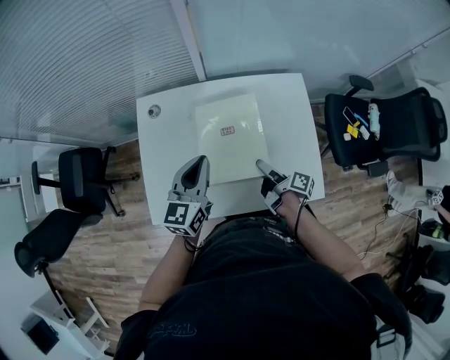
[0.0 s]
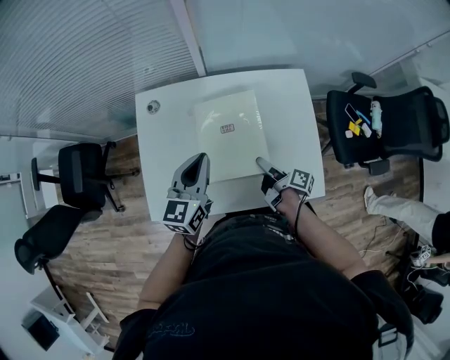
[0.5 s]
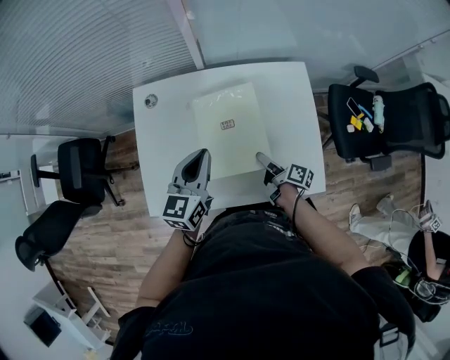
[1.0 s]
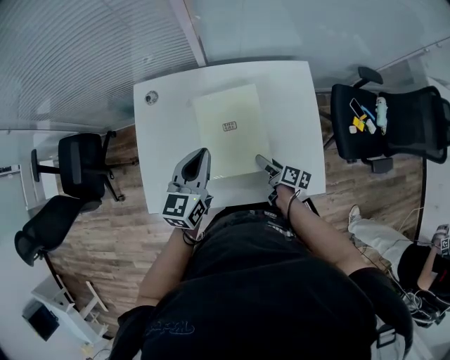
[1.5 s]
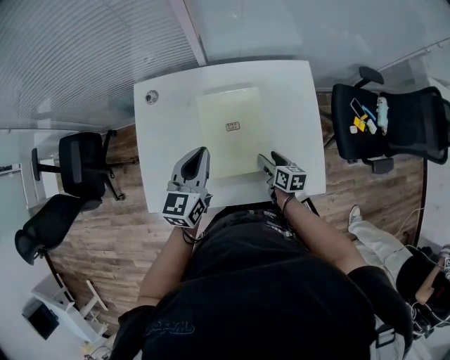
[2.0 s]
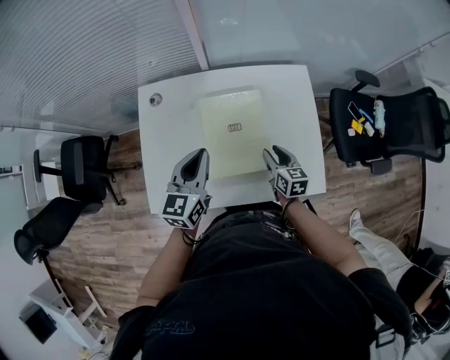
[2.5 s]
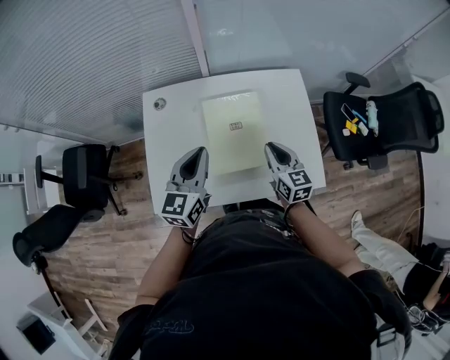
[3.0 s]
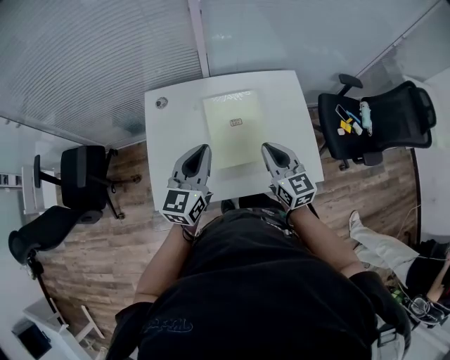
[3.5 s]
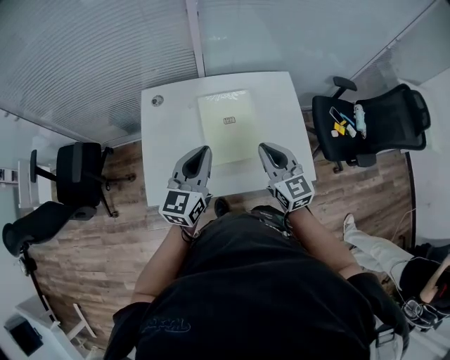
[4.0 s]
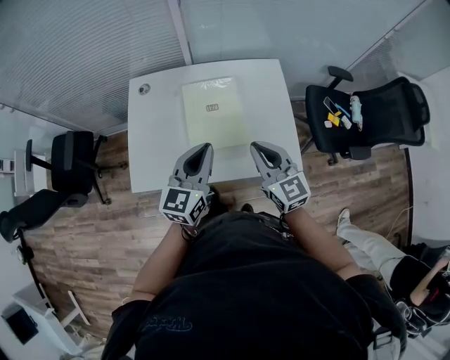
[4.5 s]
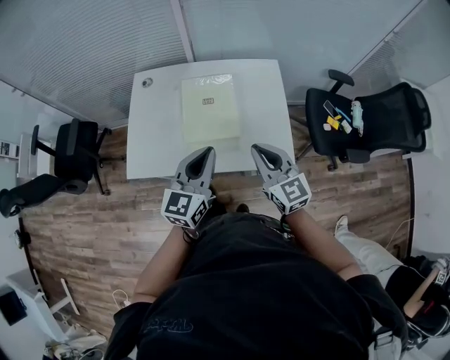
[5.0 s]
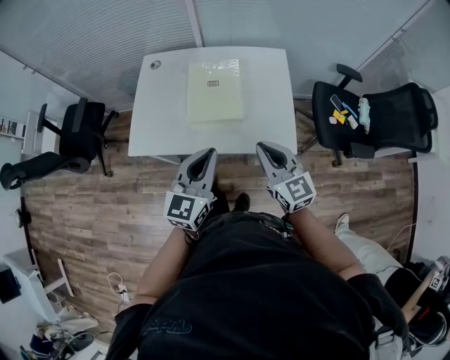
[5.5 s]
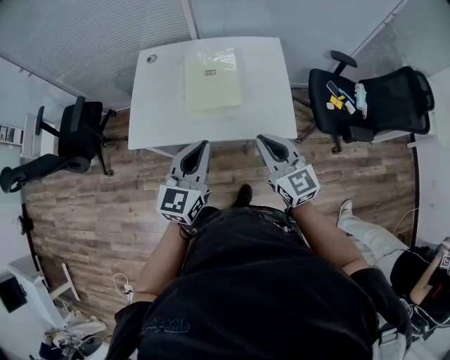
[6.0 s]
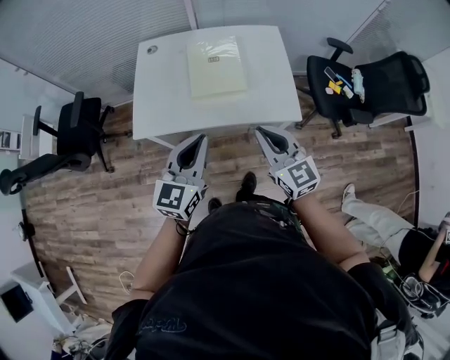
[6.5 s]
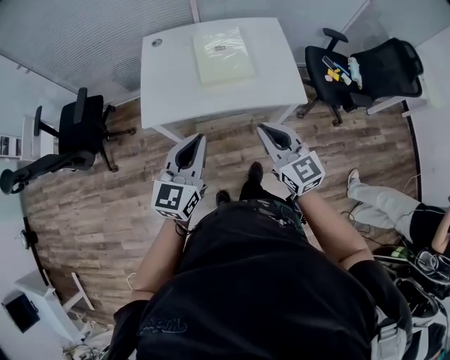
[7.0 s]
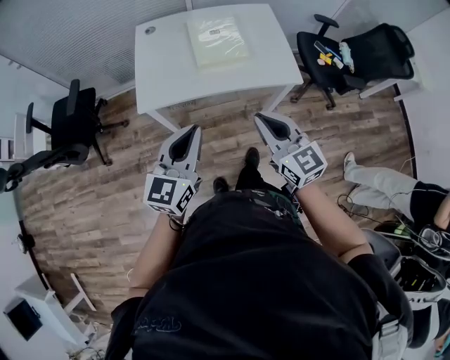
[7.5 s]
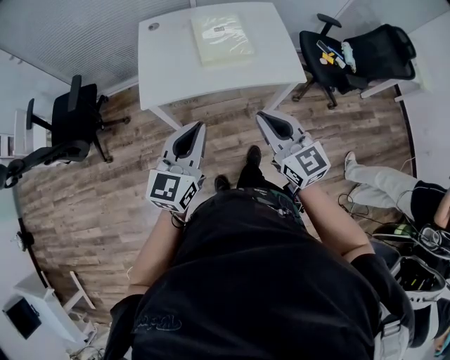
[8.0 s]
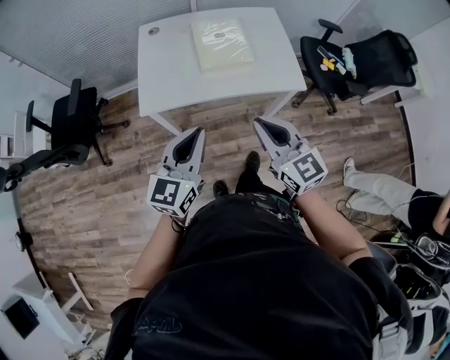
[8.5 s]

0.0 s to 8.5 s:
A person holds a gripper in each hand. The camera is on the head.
0.0 to 2.0 s: The right gripper shifts approximately 10 cm downward, and rotates around the line of its fingers by about 40 degrees, counterclockwise from behind.
2.0 to 4.0 s: The left gripper shifts approximately 15 cm backward and upward; the right gripper travels upward by some 25 cm, twists approximately 40 degrees counterclockwise, seen from behind, and closes its fingers.
4.0 to 6.5 s: Both grippers travel together backward, approximately 25 cm.
6.5 to 8.5 s: Both grippers move backward and to the left, some 15 cm.

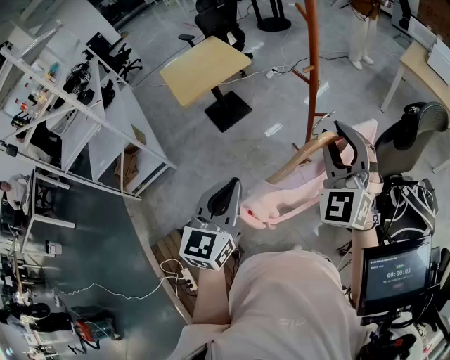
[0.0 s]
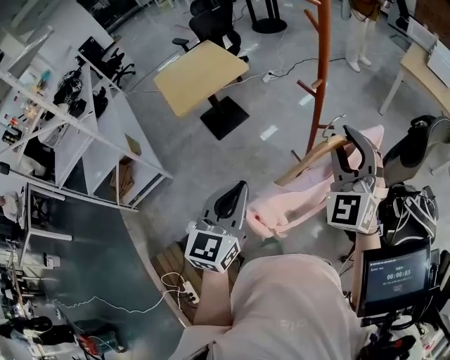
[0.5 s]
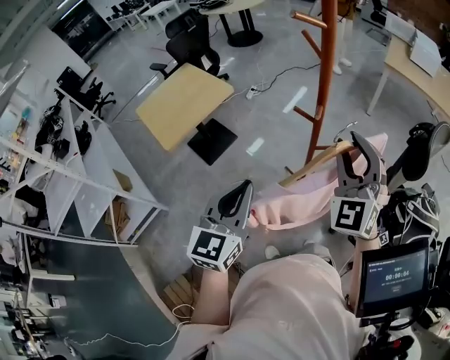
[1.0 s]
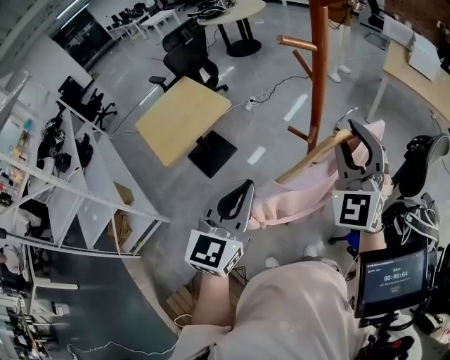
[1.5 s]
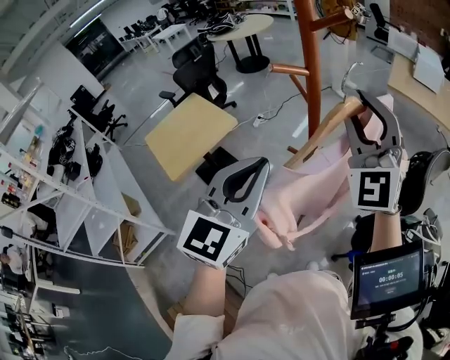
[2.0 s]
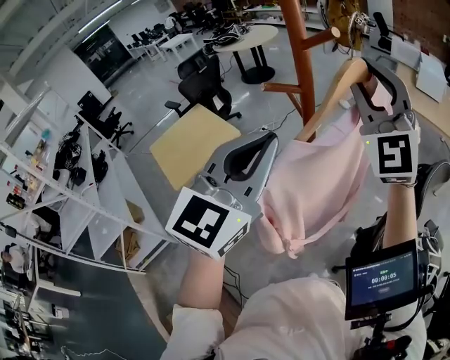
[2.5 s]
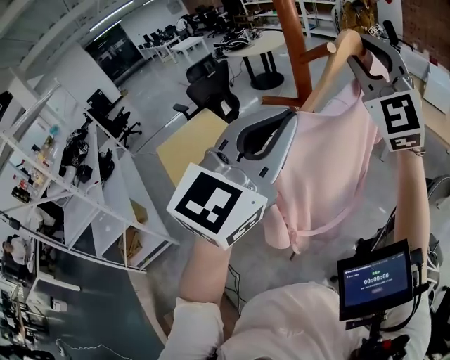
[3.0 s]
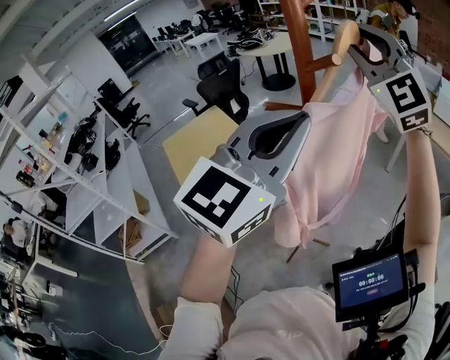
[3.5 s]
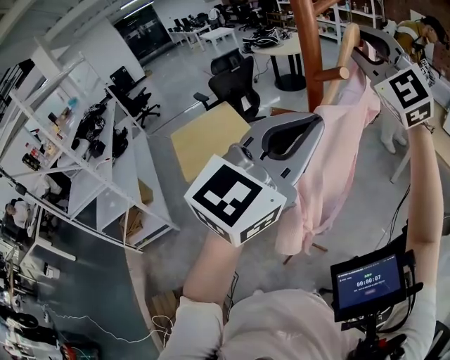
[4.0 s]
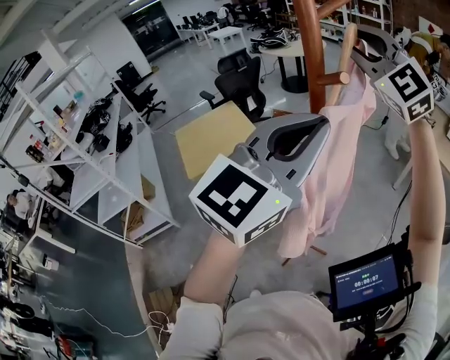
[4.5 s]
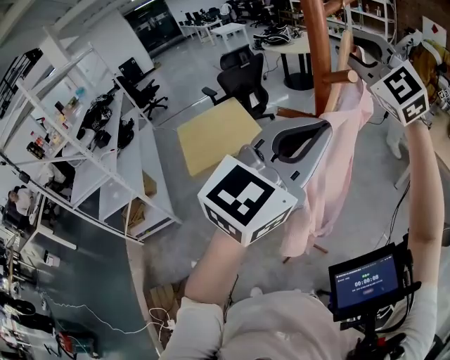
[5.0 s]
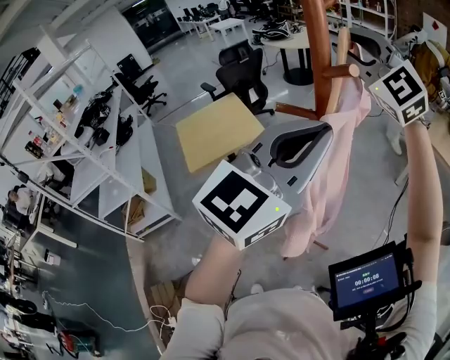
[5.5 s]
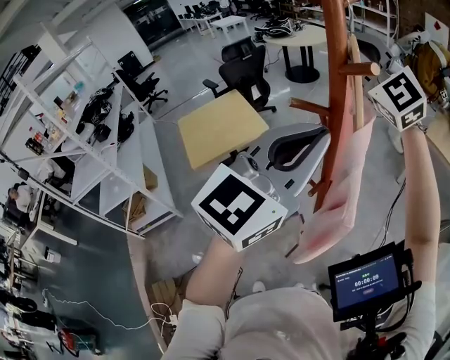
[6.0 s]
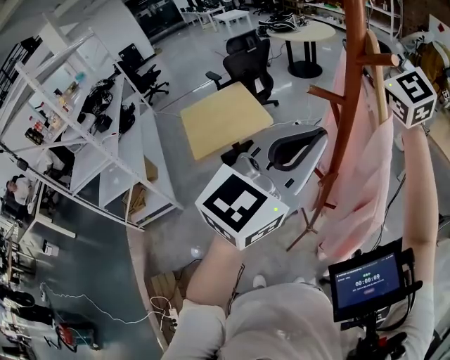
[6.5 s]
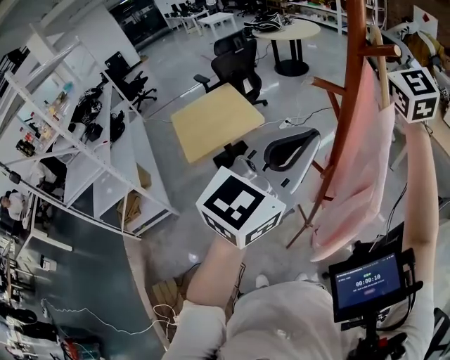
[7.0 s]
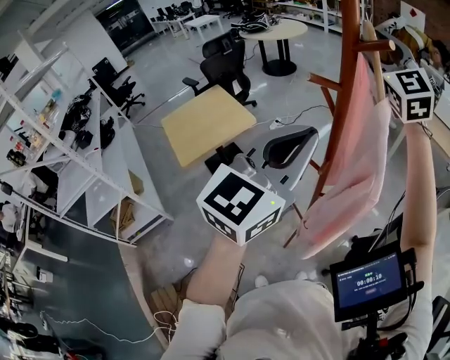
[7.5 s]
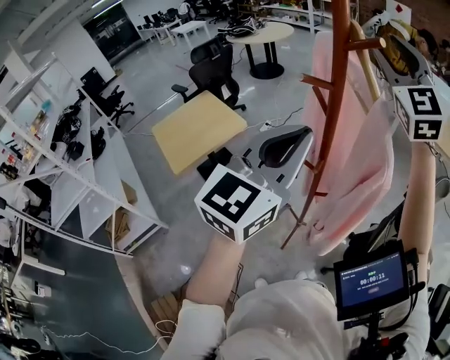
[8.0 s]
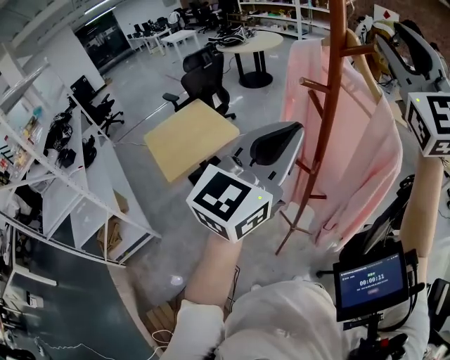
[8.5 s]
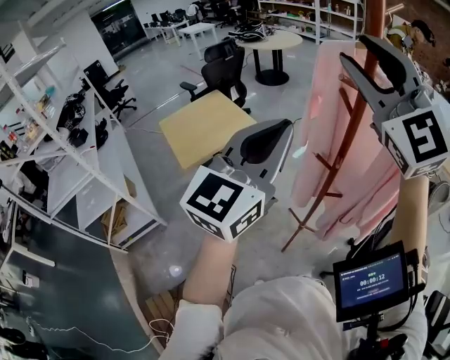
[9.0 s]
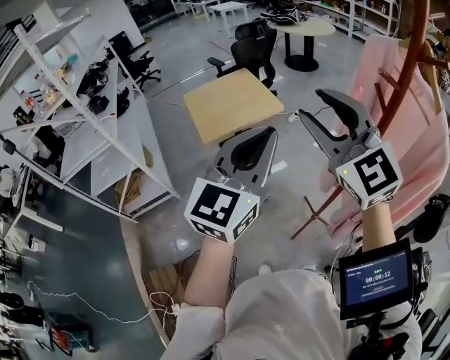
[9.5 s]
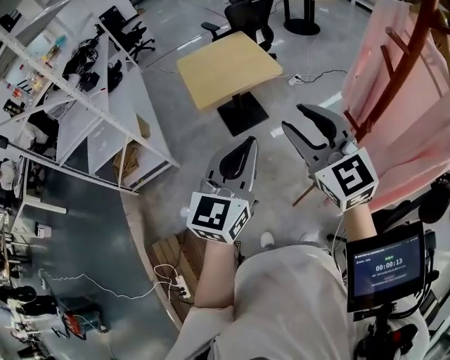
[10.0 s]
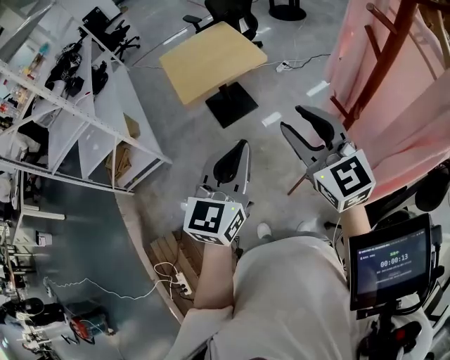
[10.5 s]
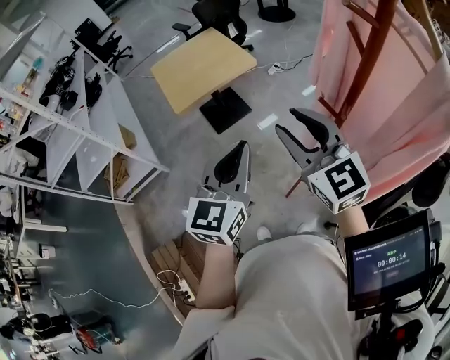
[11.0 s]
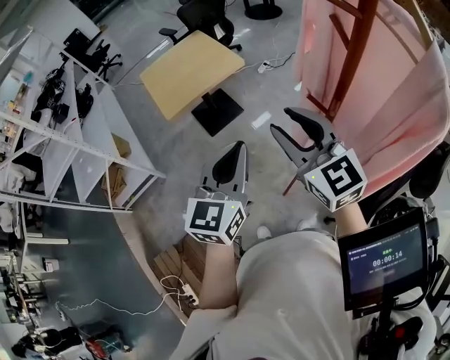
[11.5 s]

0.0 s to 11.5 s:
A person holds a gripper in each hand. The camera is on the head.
0.0 to 2.0 s: Both grippers travel together forward and upward, some 30 cm. The left gripper turns by some 30 degrees.
2.0 to 4.0 s: The right gripper travels forward and upward by roughly 20 cm, and changes its angle by about 30 degrees, while the left gripper moves upward, to the right and forward, approximately 20 cm.
4.0 to 6.0 s: The right gripper heads to the left, covering some 5 cm.
6.0 to 7.5 s: The left gripper travels to the left by some 5 cm. The right gripper shifts some 5 cm to the right, and rotates roughly 30 degrees.
7.5 to 9.5 s: The right gripper changes place by approximately 35 cm, and rotates about 30 degrees, while the left gripper moves some 20 cm, and turns by approximately 20 degrees.
9.5 to 11.5 s: The grippers both shift downward by roughly 15 cm. The right gripper turns by roughly 20 degrees.

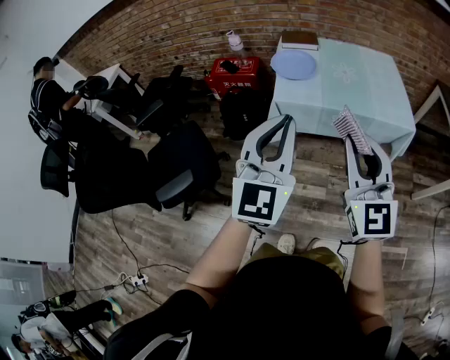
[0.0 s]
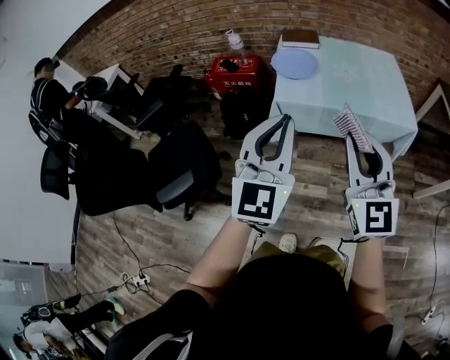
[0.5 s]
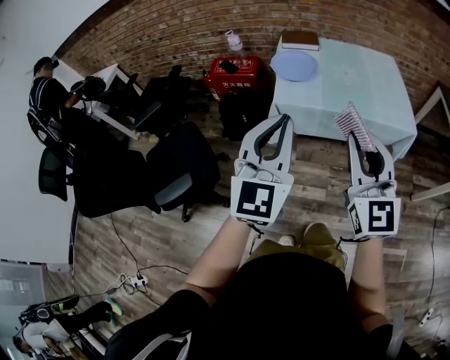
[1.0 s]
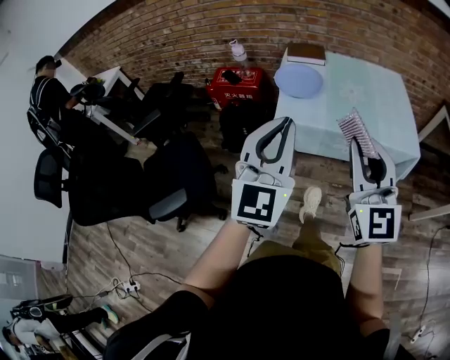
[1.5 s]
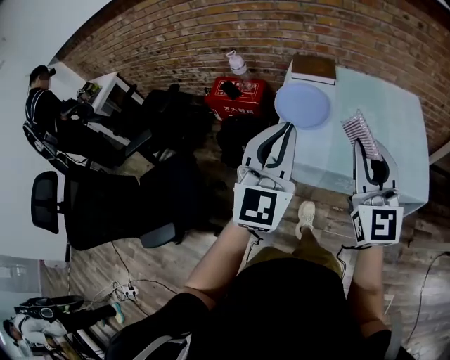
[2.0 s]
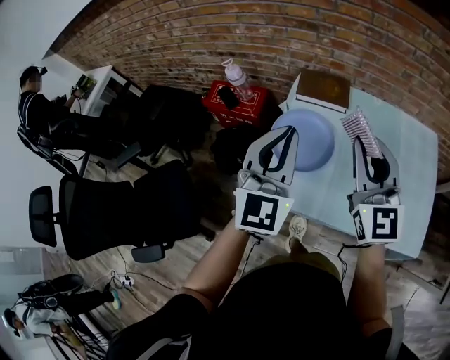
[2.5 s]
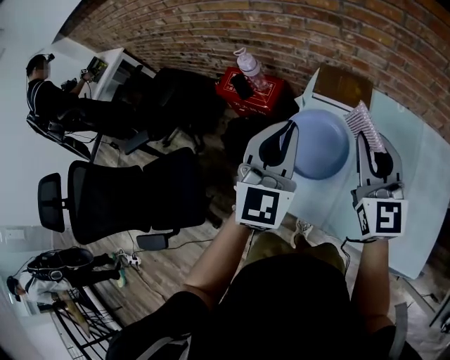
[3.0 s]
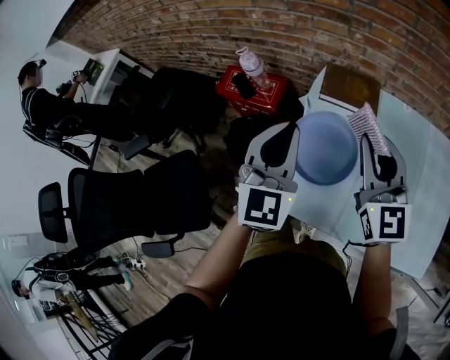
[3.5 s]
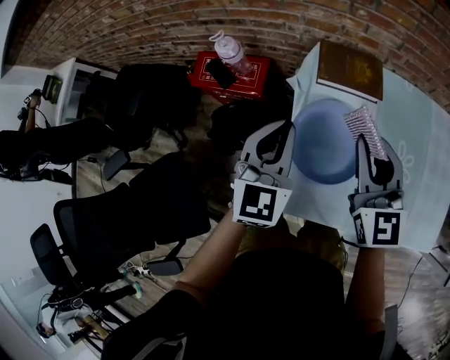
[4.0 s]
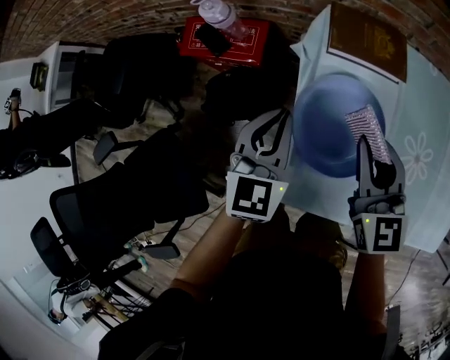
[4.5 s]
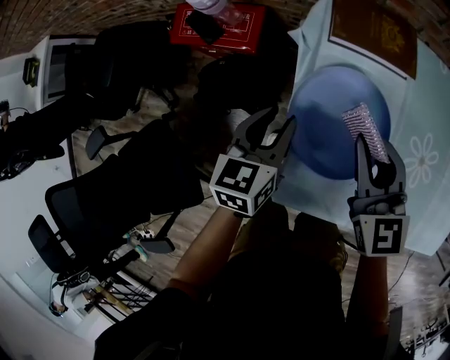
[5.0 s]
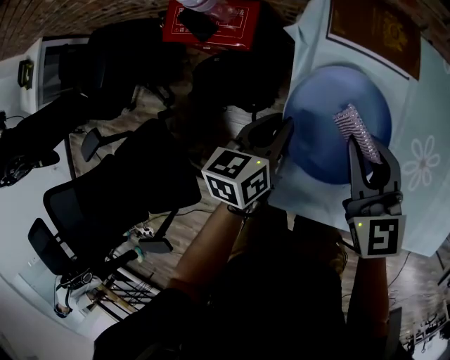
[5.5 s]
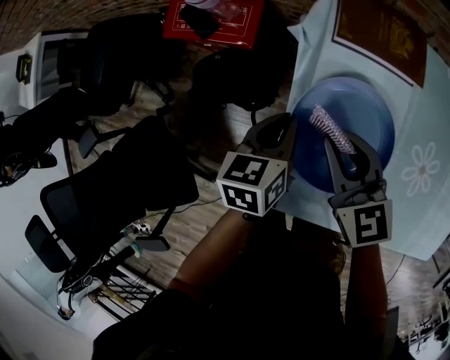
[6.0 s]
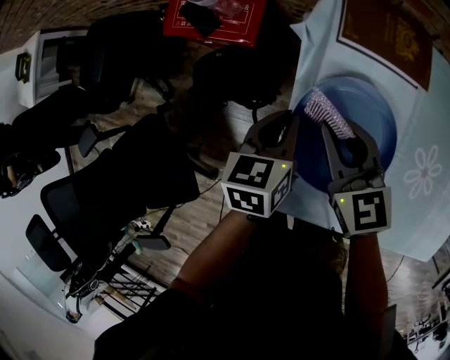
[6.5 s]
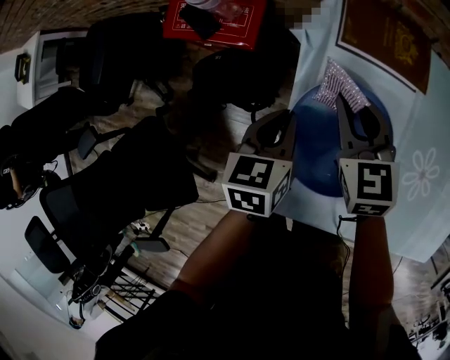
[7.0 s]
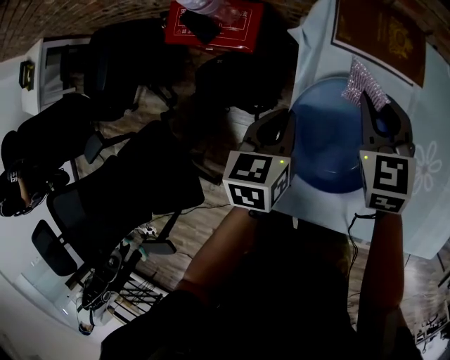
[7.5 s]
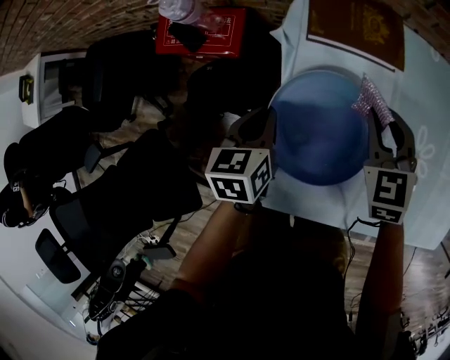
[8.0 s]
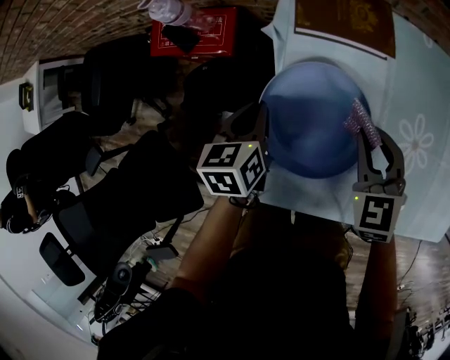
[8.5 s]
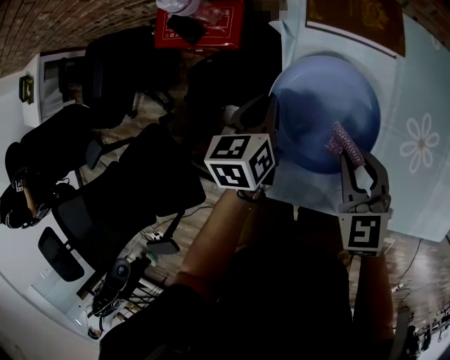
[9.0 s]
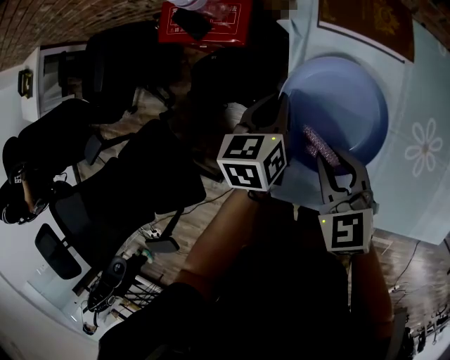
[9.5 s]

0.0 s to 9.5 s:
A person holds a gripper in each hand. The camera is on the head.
0.0 to 2.0 s: The two grippers go roughly 30 cm forward.
2.0 to 4.0 s: The right gripper heads forward, covering roughly 40 cm. Meanwhile the left gripper goes approximately 40 cm forward and downward, and rotates approximately 20 degrees.
4.0 to 5.5 s: The right gripper goes roughly 15 cm downward. Meanwhile the left gripper heads downward, covering some 20 cm, and rolls counterclockwise, seen from behind, by some 50 degrees.
5.5 to 7.5 s: The right gripper is displaced forward and downward by roughly 10 cm, and turns by approximately 20 degrees.
7.5 to 9.5 s: The right gripper moves backward, about 15 cm.
